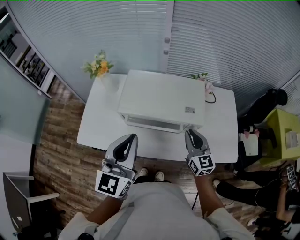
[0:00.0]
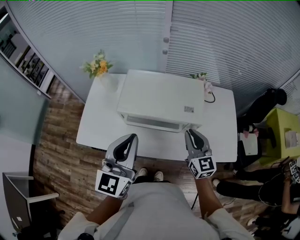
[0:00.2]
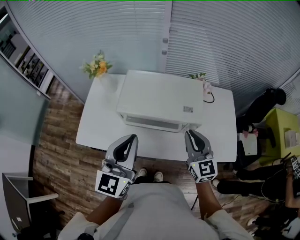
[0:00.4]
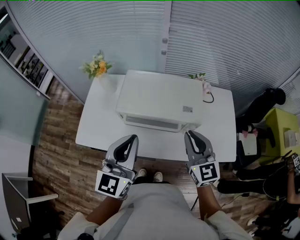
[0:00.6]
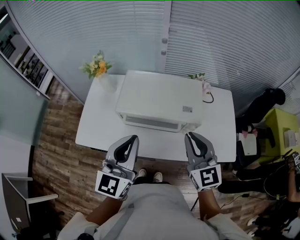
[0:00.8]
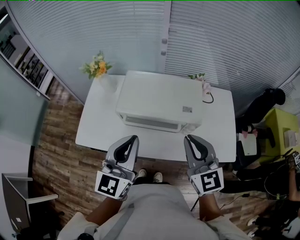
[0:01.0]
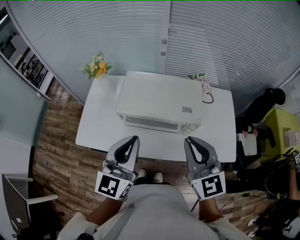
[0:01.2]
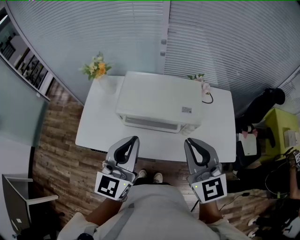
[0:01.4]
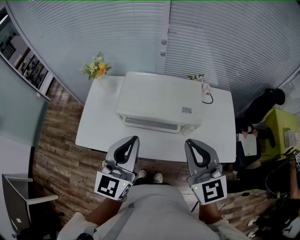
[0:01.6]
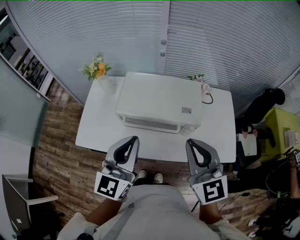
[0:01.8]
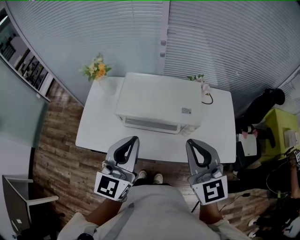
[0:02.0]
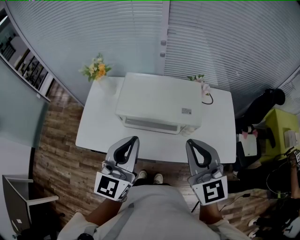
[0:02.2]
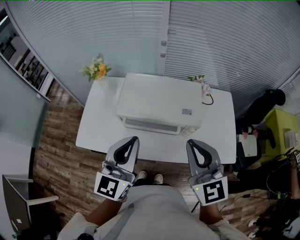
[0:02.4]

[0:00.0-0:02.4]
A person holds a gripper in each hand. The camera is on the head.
0:00.0 to 0:01.2: The right gripper heads upward, covering some 15 cm.
0:01.2 to 0:02.4: The grippers stay close to where they were, moving slightly.

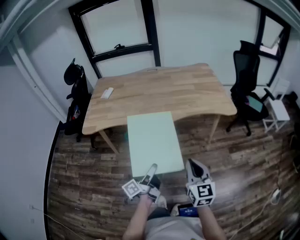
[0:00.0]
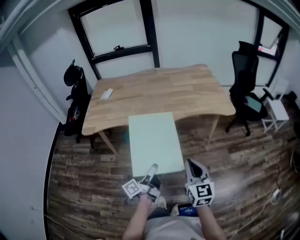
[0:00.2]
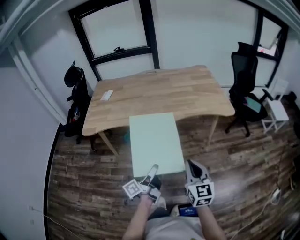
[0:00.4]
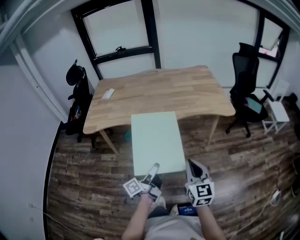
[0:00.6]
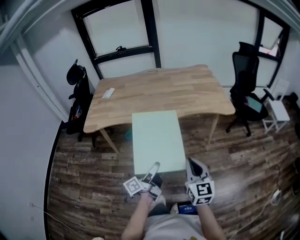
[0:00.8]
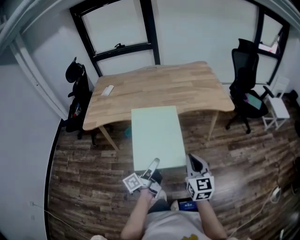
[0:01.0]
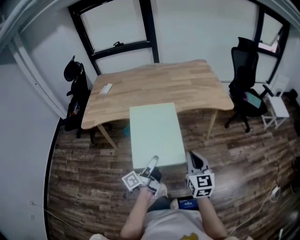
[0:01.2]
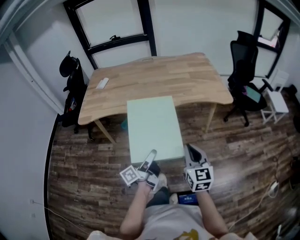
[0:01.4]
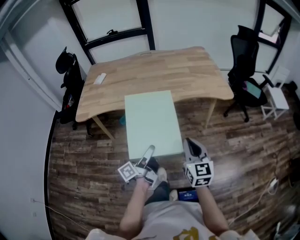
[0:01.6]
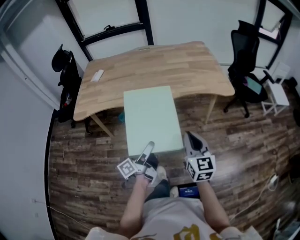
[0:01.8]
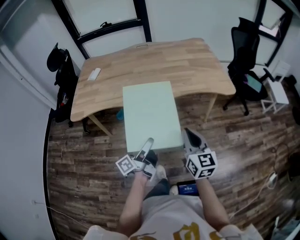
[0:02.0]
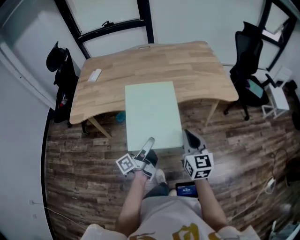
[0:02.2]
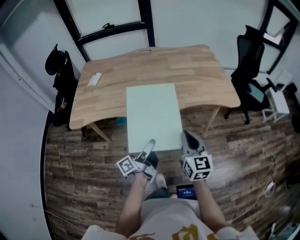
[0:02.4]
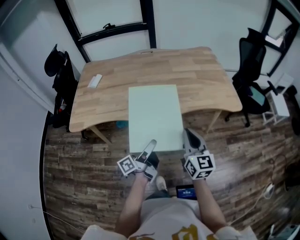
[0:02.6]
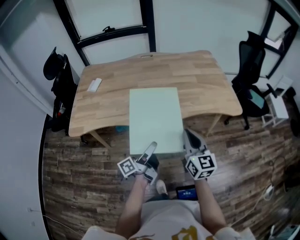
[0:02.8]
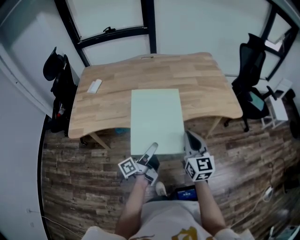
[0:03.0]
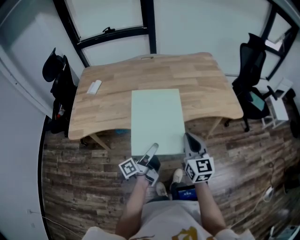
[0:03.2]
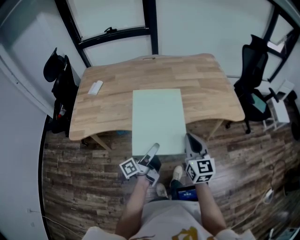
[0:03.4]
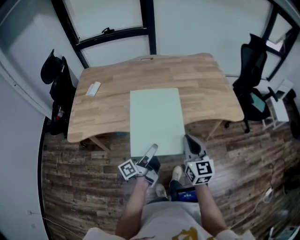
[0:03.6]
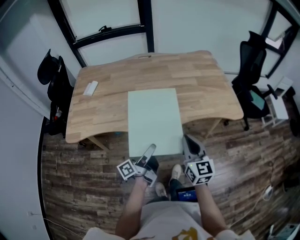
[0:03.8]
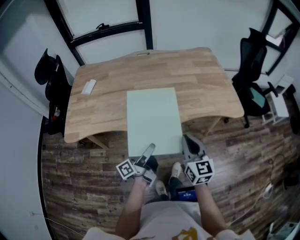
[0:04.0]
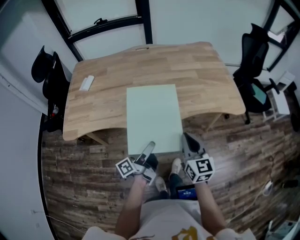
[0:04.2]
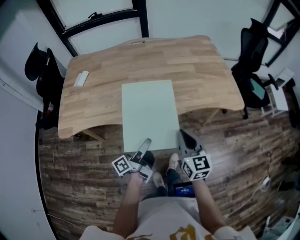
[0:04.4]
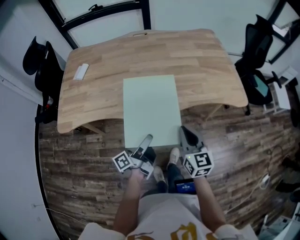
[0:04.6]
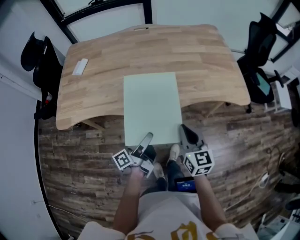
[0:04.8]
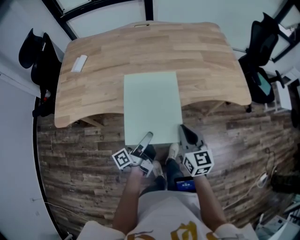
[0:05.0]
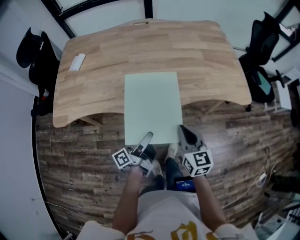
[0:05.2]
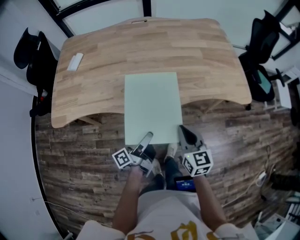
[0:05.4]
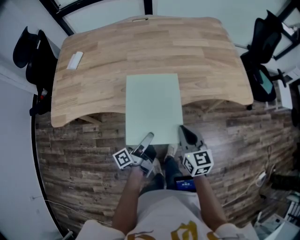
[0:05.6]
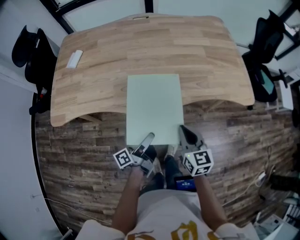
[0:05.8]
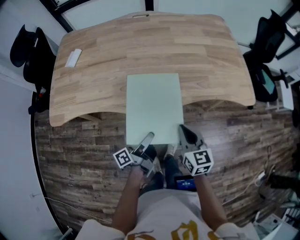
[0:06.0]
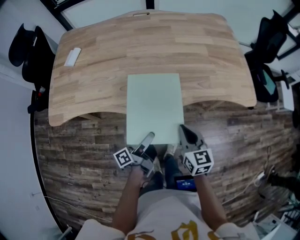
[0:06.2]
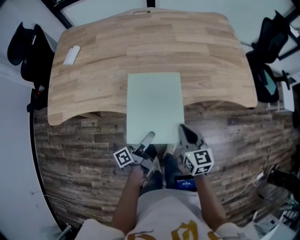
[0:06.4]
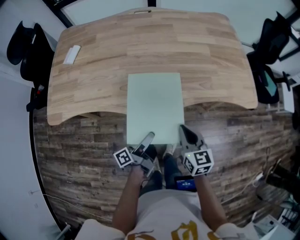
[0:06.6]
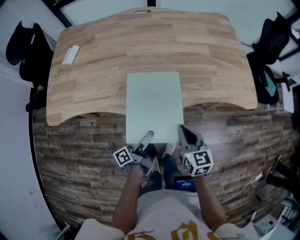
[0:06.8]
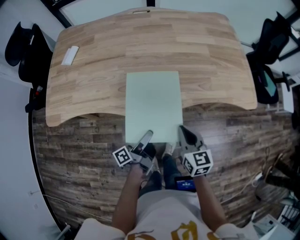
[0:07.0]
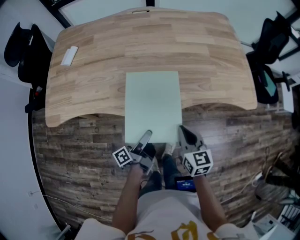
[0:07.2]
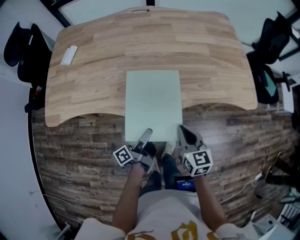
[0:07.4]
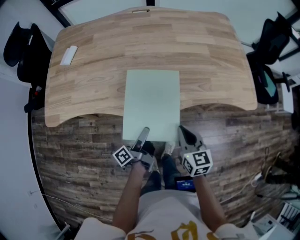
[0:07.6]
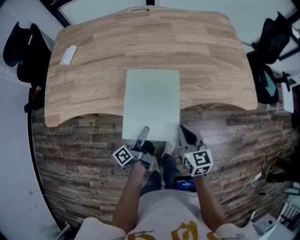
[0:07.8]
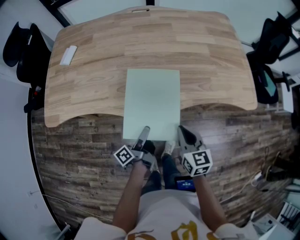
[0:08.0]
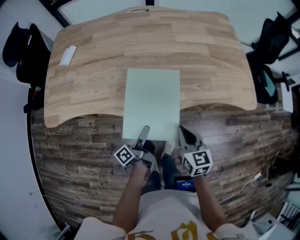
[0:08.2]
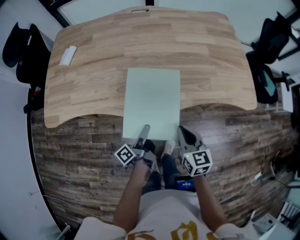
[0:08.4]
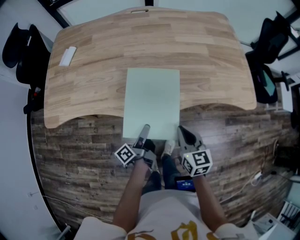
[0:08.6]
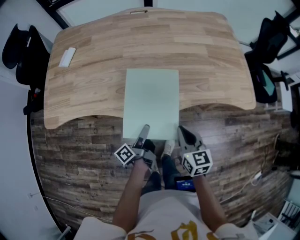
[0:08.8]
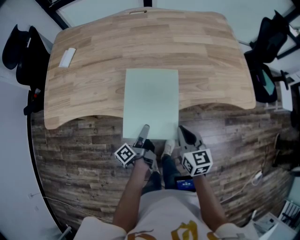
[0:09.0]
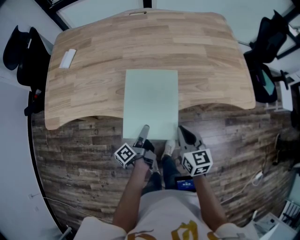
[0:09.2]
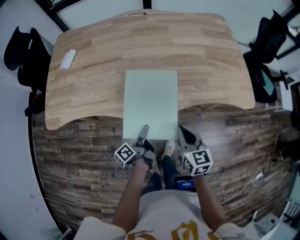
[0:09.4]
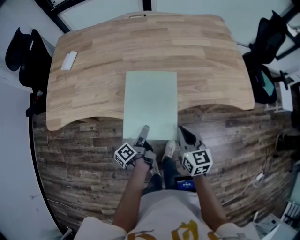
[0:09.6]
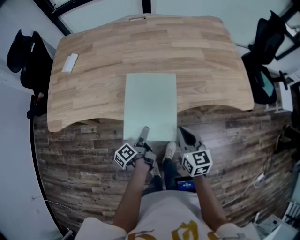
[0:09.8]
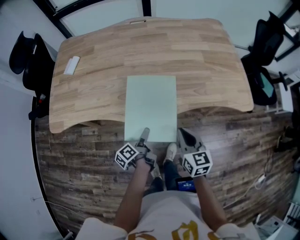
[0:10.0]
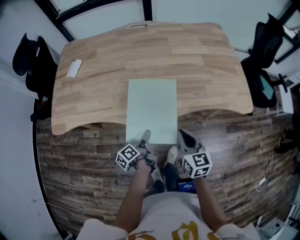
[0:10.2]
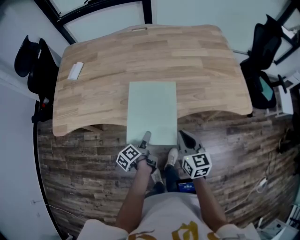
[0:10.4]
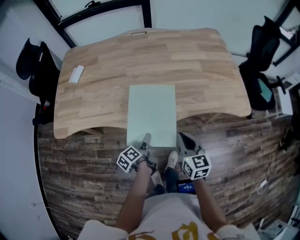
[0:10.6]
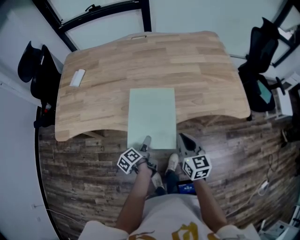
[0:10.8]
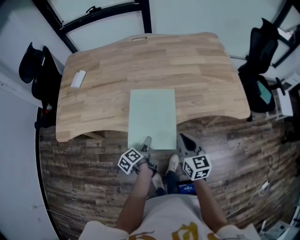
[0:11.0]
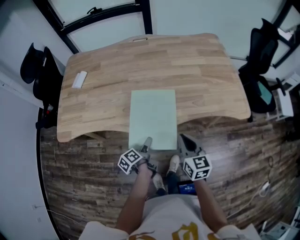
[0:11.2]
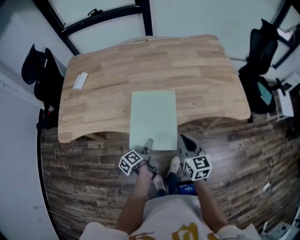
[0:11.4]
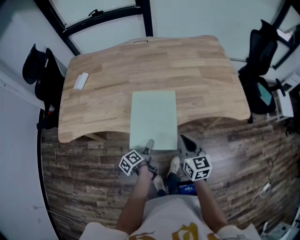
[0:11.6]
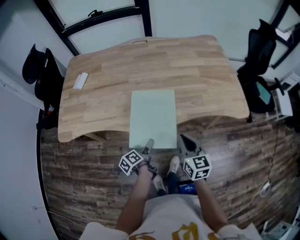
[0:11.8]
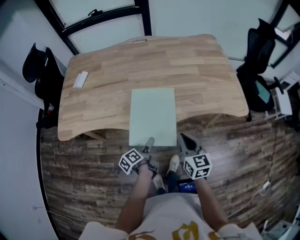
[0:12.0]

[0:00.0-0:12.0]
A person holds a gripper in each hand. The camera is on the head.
0:01.6 to 0:03.0: The right gripper shifts by approximately 20 cm.
0:03.0 to 0:04.4: The right gripper is displaced downward by some 5 cm.
0:04.4 to 0:06.0: The right gripper shifts roughly 10 cm downward.

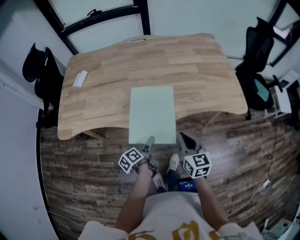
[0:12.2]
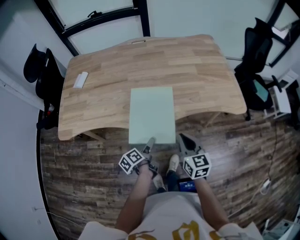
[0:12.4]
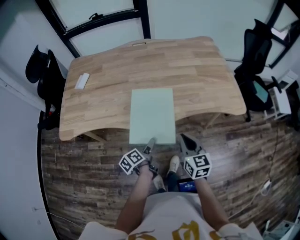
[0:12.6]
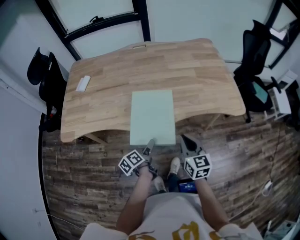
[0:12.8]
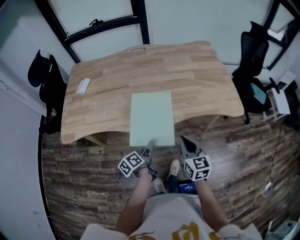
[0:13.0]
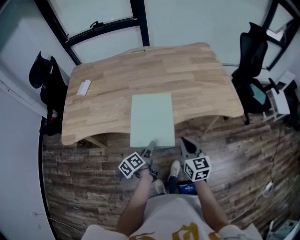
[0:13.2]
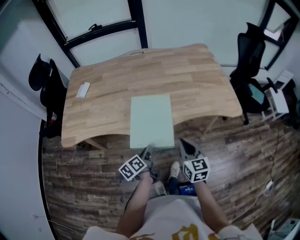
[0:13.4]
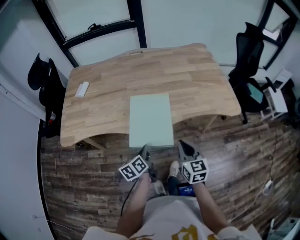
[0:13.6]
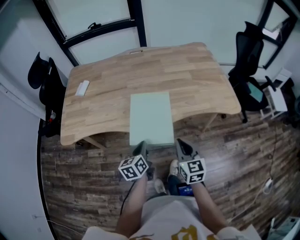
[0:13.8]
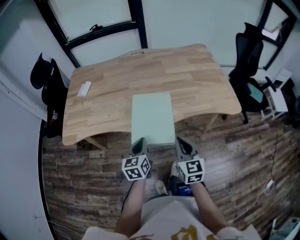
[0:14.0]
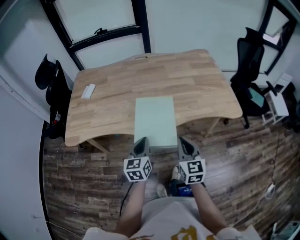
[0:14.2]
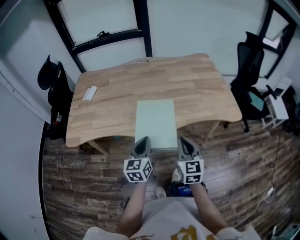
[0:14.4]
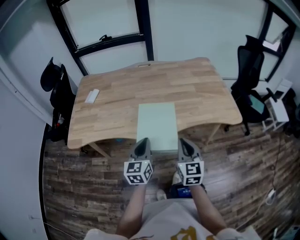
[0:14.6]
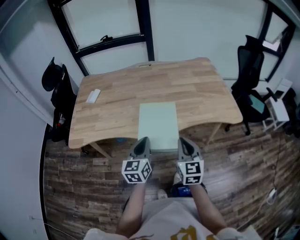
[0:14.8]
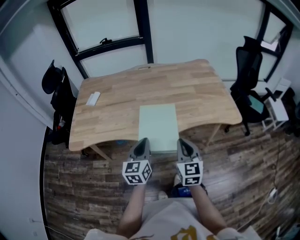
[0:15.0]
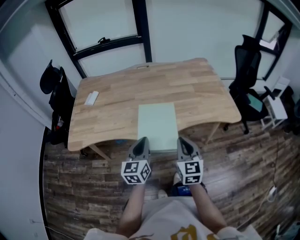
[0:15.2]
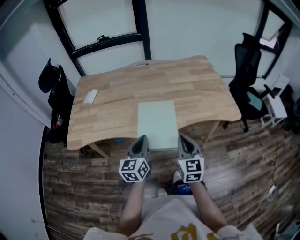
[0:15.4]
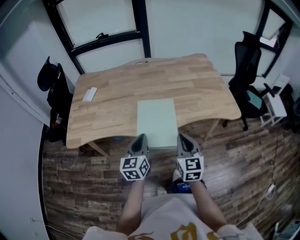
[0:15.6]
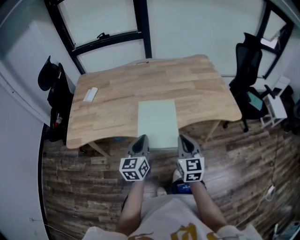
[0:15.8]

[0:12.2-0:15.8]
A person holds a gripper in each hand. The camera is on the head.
0:12.2 to 0:14.0: The right gripper ends up about 5 cm from where it was.

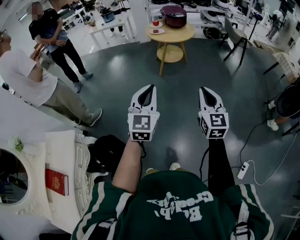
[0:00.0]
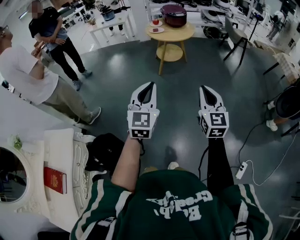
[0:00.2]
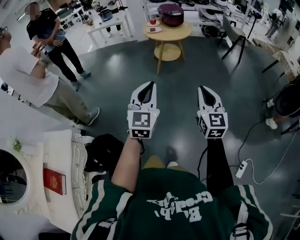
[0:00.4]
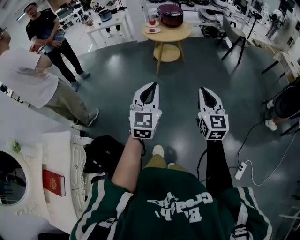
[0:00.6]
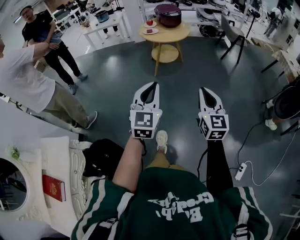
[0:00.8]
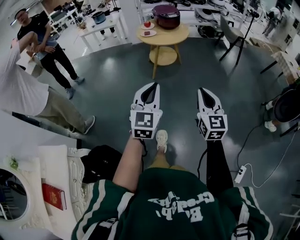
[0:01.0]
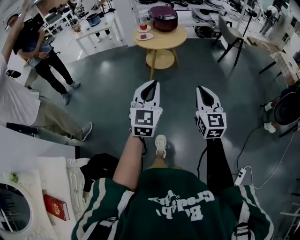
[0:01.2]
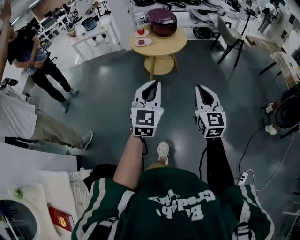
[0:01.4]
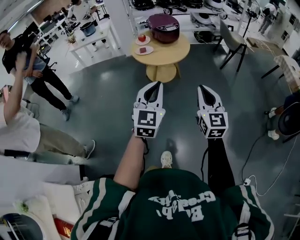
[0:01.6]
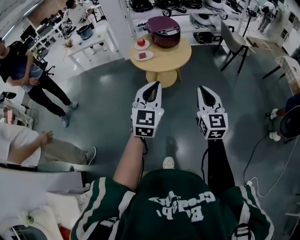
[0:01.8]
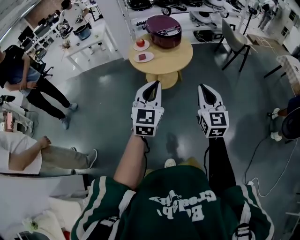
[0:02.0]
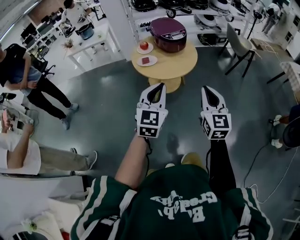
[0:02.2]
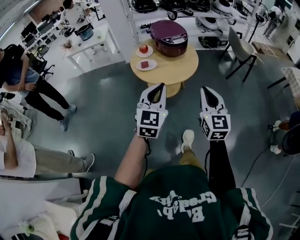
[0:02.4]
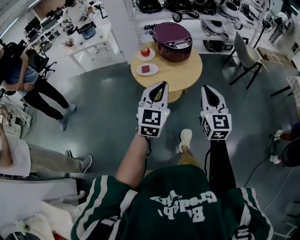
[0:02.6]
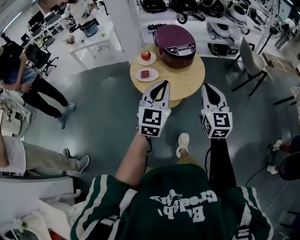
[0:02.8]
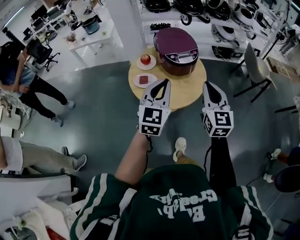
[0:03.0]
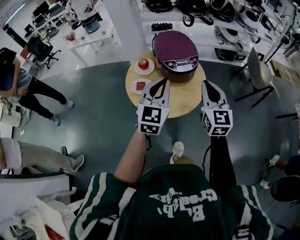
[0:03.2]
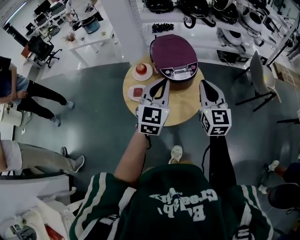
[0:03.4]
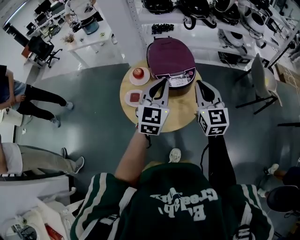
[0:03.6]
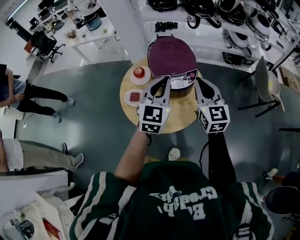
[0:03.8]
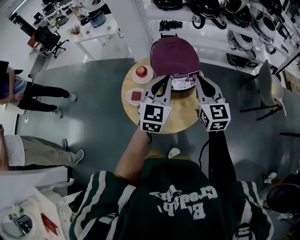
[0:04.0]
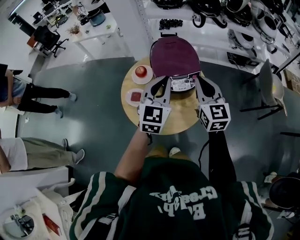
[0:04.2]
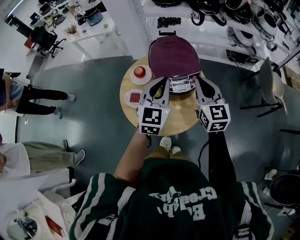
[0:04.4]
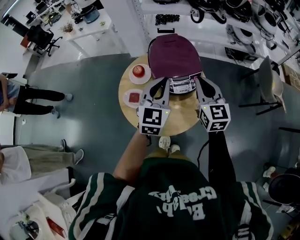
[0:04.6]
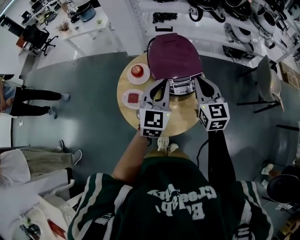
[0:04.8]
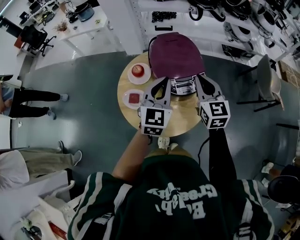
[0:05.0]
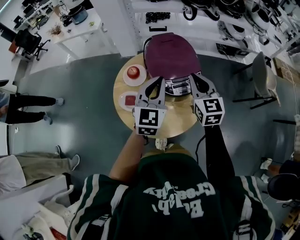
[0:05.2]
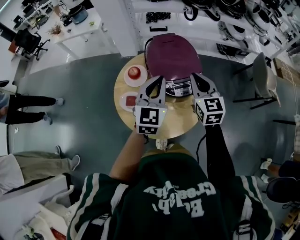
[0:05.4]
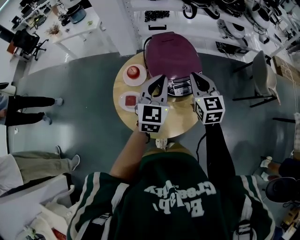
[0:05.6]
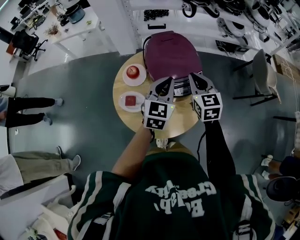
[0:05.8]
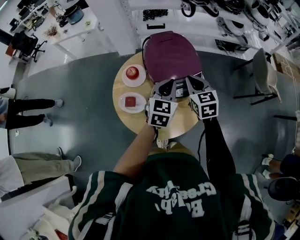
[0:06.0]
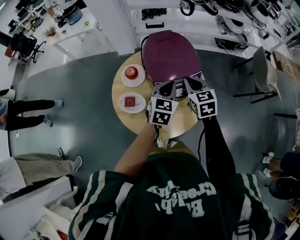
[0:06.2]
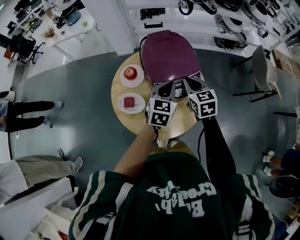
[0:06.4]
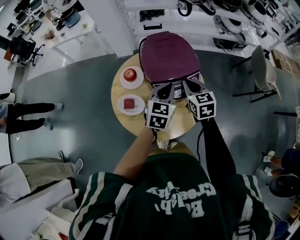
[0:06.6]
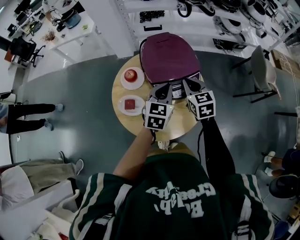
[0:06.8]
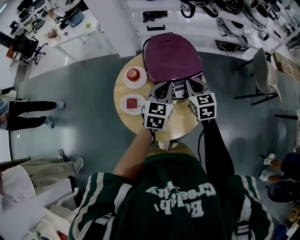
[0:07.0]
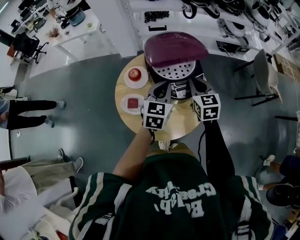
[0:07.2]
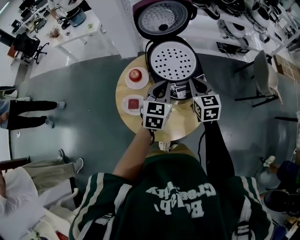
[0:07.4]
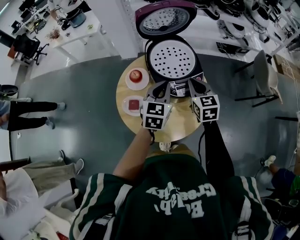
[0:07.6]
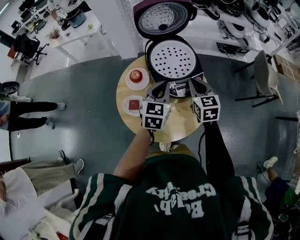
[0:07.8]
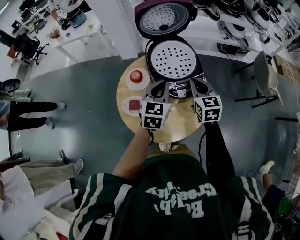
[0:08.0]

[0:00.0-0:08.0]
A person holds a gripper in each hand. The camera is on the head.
0:00.0 to 0:01.6: The grippers both shift forward by some 40 cm.
0:01.6 to 0:03.2: The pair of grippers is taken forward, approximately 60 cm.
0:03.2 to 0:04.8: The two grippers go roughly 20 cm forward.
0:04.8 to 0:06.4: The grippers both shift downward by about 10 cm. The left gripper swivels approximately 20 degrees.
0:06.4 to 0:08.0: The left gripper shifts some 5 cm to the left.
